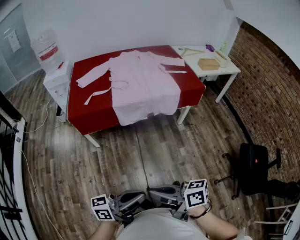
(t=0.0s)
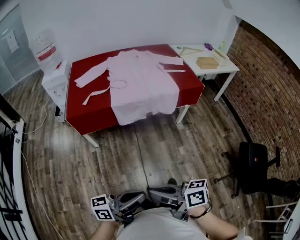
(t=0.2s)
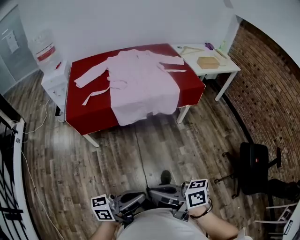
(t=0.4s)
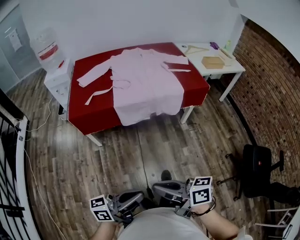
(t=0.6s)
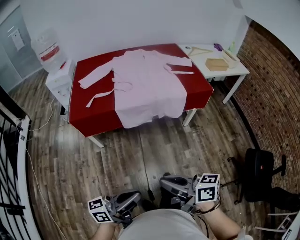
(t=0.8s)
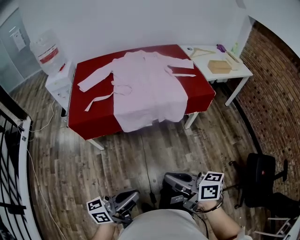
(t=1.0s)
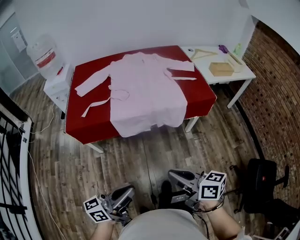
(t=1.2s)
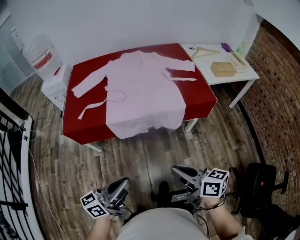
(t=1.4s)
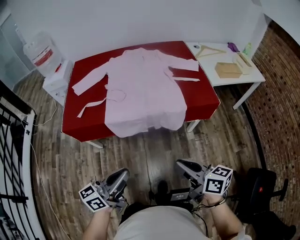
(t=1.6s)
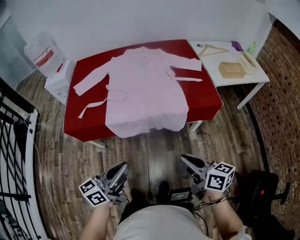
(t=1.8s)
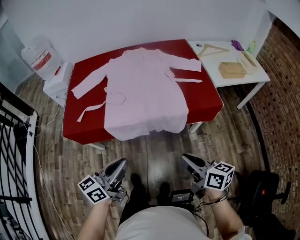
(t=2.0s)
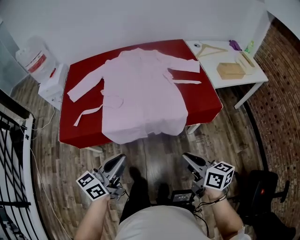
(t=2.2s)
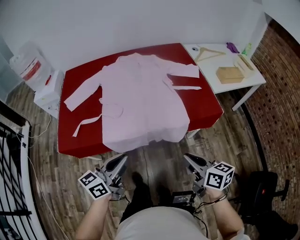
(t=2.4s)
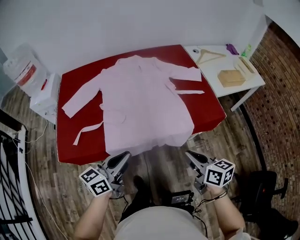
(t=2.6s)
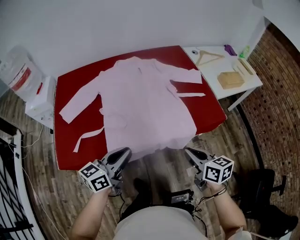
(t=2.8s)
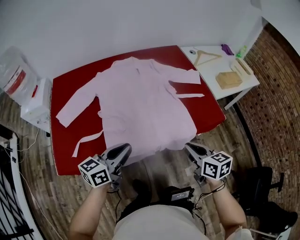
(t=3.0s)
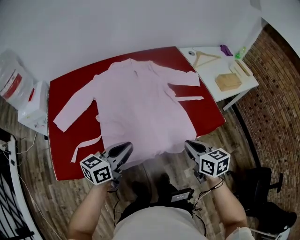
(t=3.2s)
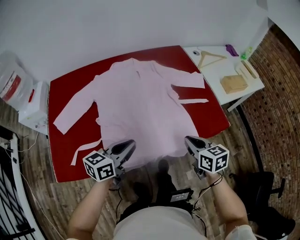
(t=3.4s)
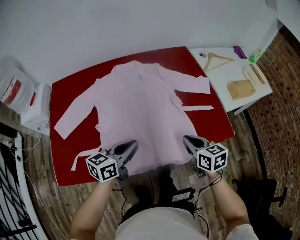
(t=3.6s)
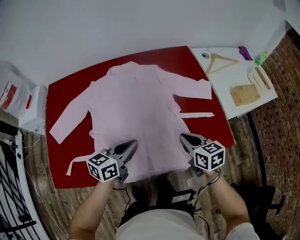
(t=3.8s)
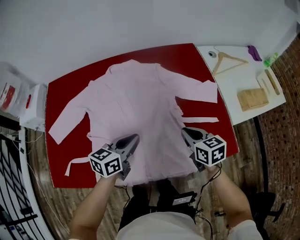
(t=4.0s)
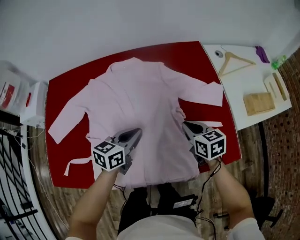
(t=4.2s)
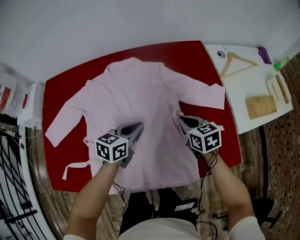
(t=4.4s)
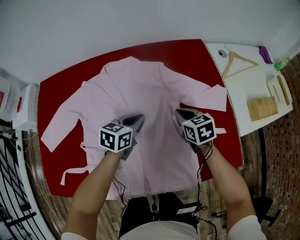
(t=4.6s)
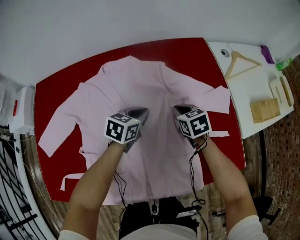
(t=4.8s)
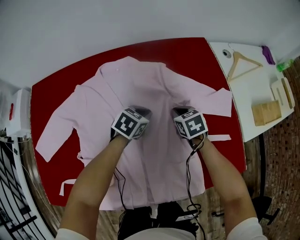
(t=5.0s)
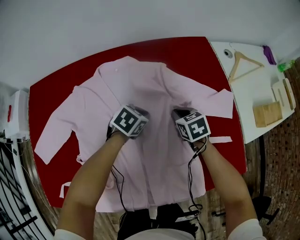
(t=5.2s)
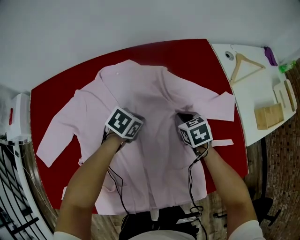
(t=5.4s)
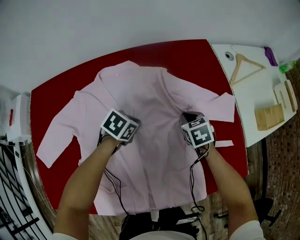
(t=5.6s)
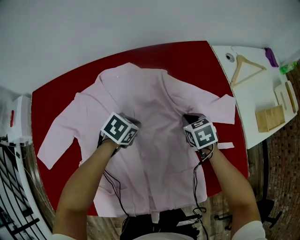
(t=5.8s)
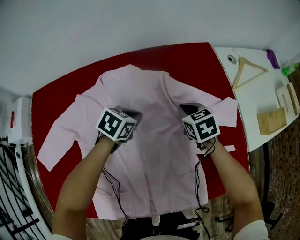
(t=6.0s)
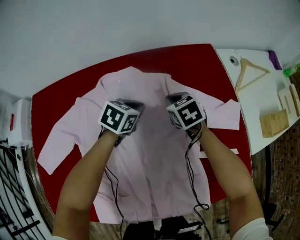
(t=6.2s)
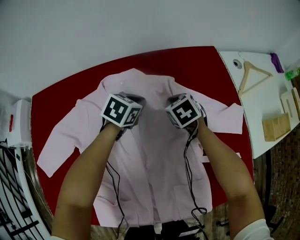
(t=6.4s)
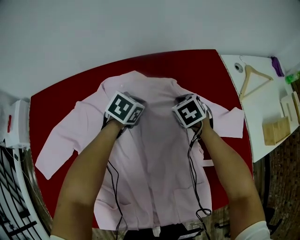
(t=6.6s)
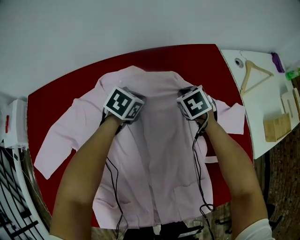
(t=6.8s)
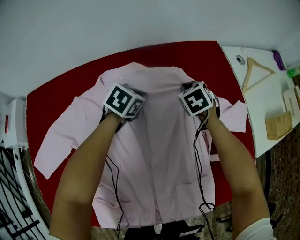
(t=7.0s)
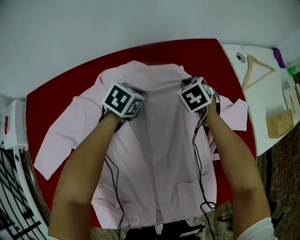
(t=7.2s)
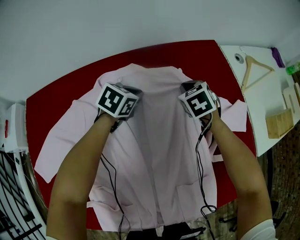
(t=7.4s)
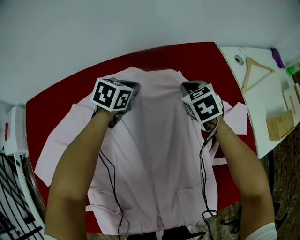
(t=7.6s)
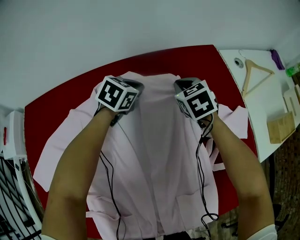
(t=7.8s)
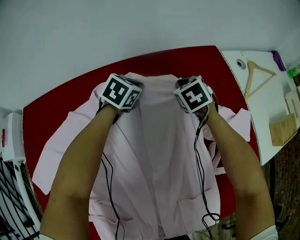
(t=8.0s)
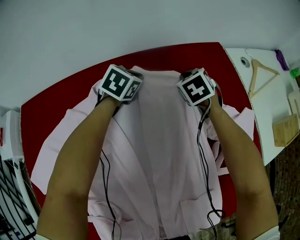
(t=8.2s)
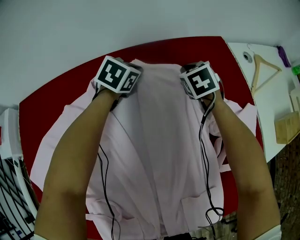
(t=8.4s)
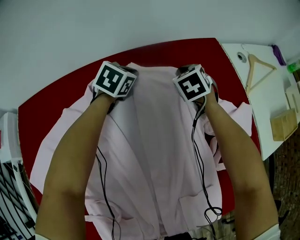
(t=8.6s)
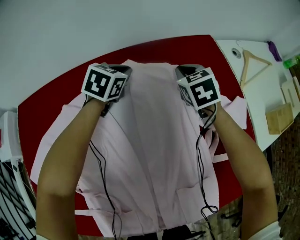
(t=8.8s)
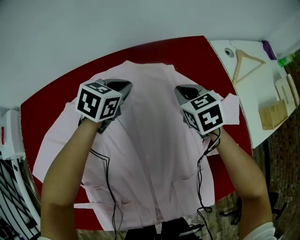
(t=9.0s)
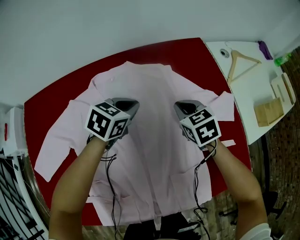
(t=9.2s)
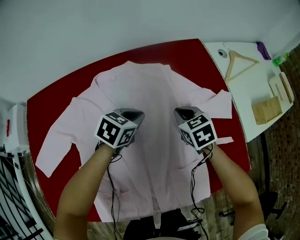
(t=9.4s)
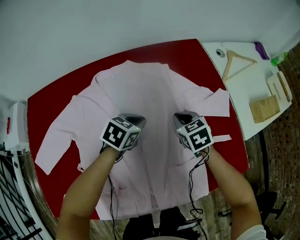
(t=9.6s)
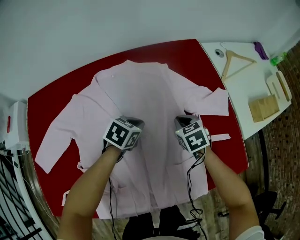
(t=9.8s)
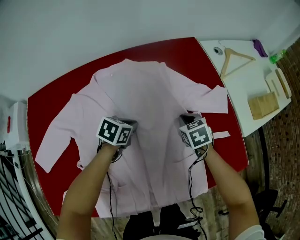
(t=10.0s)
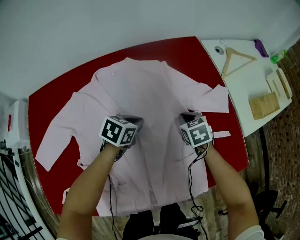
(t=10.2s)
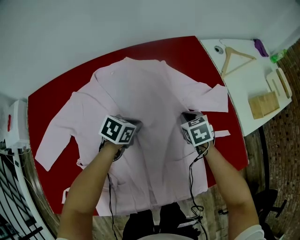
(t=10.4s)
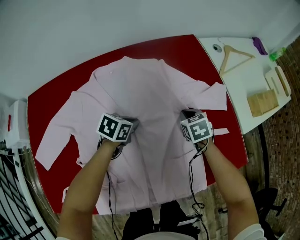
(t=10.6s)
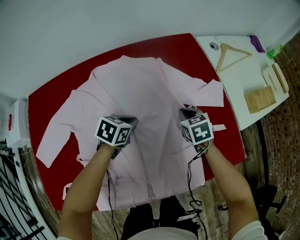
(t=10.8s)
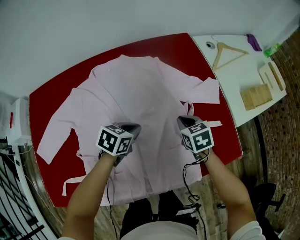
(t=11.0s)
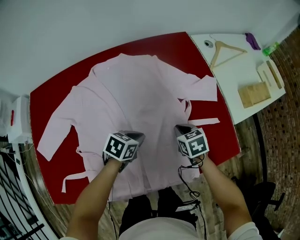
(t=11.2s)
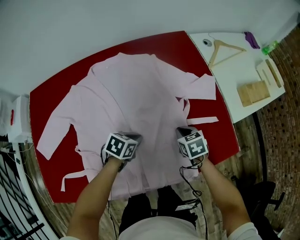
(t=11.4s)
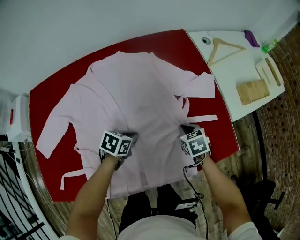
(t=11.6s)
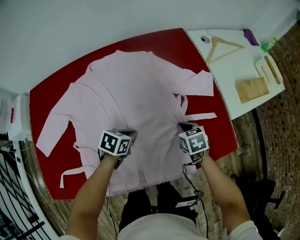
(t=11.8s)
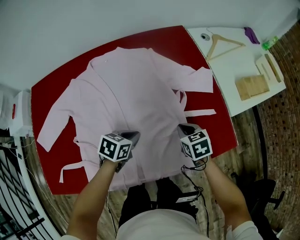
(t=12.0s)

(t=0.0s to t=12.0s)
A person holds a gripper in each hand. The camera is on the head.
t=0.0s - t=1.6s: The right gripper ends up some 35 cm from where it was, while the left gripper shifts by about 30 cm, and rotates approximately 30 degrees.
t=1.6s - t=3.0s: Both grippers travel together forward, roughly 25 cm. The right gripper changes its angle by some 30 degrees.
t=3.0s - t=4.4s: Both grippers move forward, some 35 cm. The left gripper swivels roughly 20 degrees.
t=4.4s - t=6.0s: The left gripper heads forward and downward, covering some 15 cm, and rotates approximately 30 degrees. Meanwhile the right gripper is displaced forward and to the left by about 15 cm.
t=6.0s - t=7.6s: Both grippers travel together forward, roughly 10 cm.
t=7.6s - t=9.0s: The right gripper heads backward, covering some 5 cm. Meanwhile the left gripper moves approximately 5 cm forward and comes back.
t=9.0s - t=10.4s: The left gripper goes approximately 20 cm backward, downward and to the right, and changes its angle by approximately 20 degrees. The right gripper heads backward, to the right and downward, covering about 15 cm.
t=10.4s - t=12.0s: The grippers both shift backward and to the right by about 15 cm.

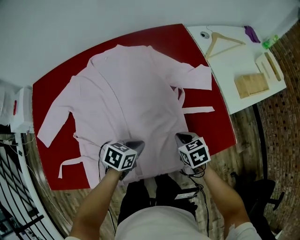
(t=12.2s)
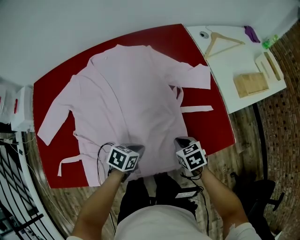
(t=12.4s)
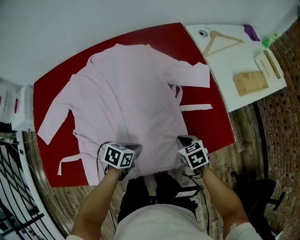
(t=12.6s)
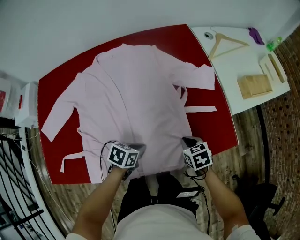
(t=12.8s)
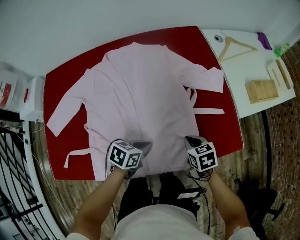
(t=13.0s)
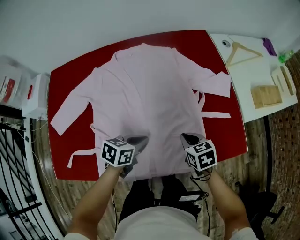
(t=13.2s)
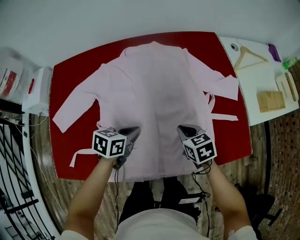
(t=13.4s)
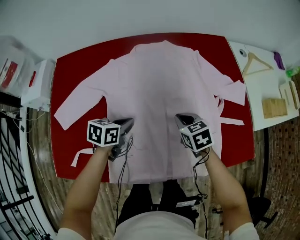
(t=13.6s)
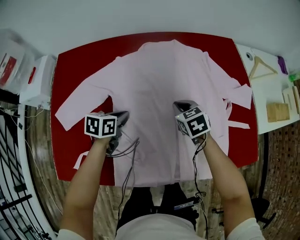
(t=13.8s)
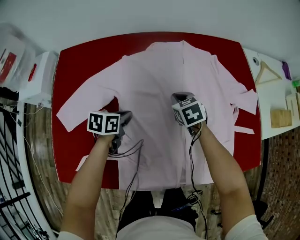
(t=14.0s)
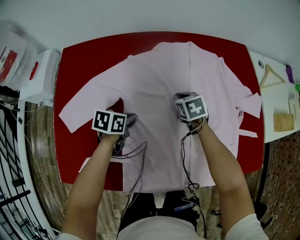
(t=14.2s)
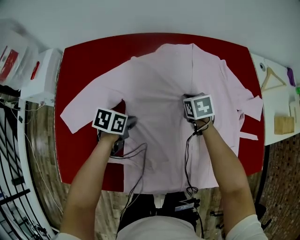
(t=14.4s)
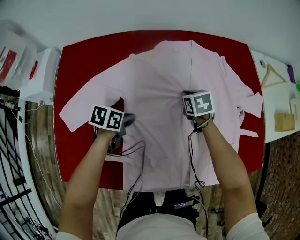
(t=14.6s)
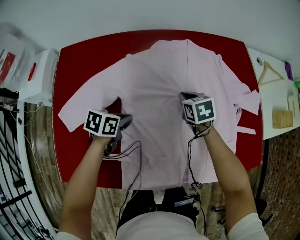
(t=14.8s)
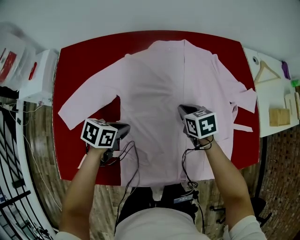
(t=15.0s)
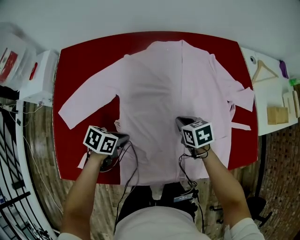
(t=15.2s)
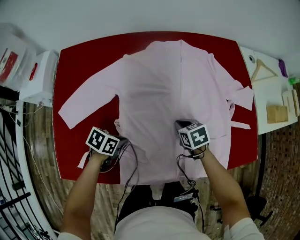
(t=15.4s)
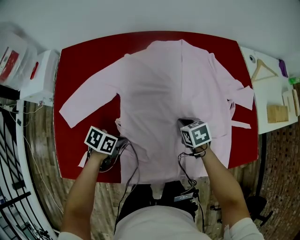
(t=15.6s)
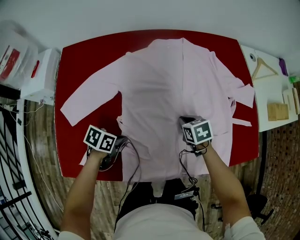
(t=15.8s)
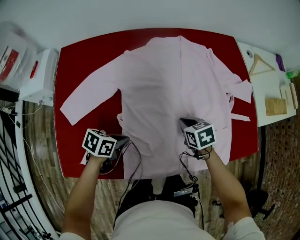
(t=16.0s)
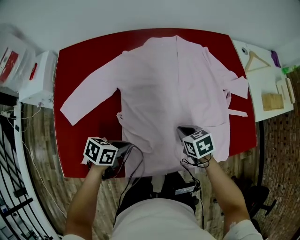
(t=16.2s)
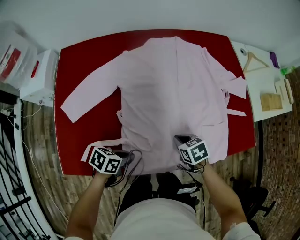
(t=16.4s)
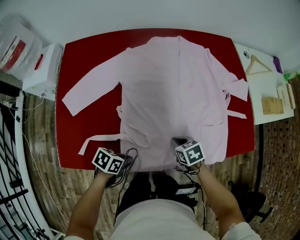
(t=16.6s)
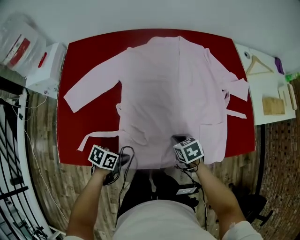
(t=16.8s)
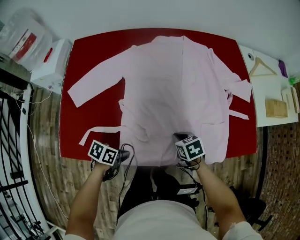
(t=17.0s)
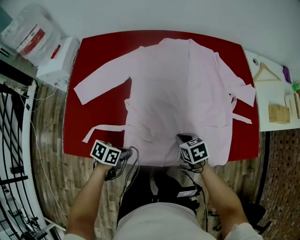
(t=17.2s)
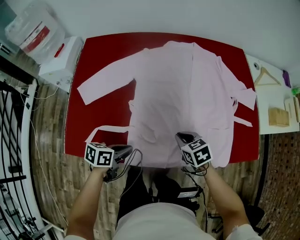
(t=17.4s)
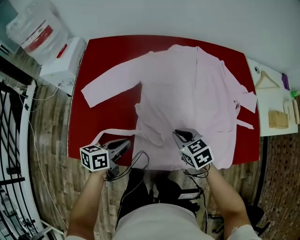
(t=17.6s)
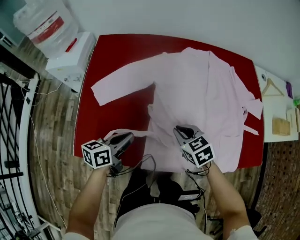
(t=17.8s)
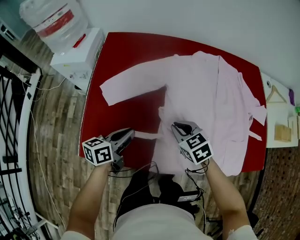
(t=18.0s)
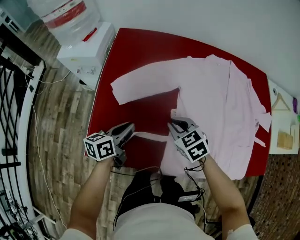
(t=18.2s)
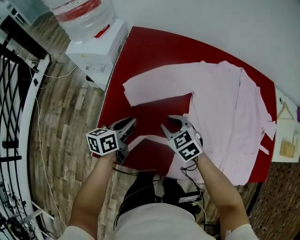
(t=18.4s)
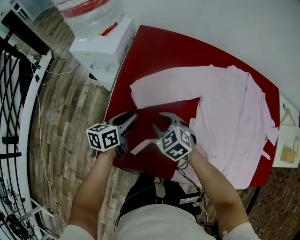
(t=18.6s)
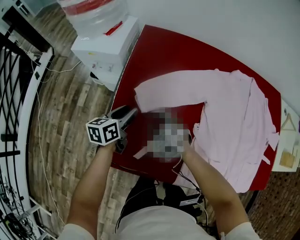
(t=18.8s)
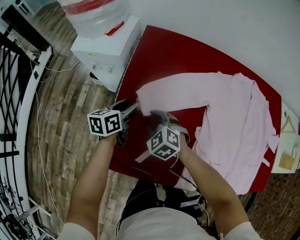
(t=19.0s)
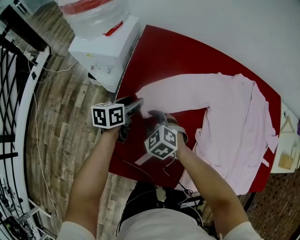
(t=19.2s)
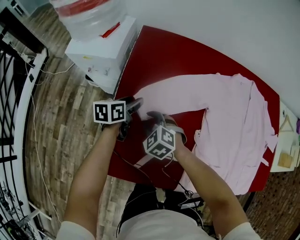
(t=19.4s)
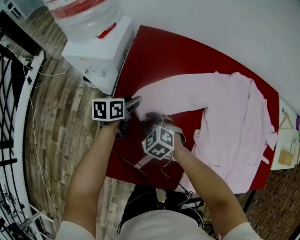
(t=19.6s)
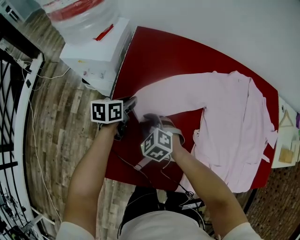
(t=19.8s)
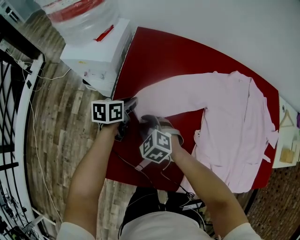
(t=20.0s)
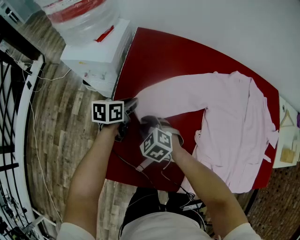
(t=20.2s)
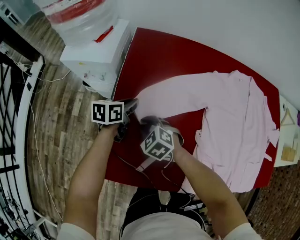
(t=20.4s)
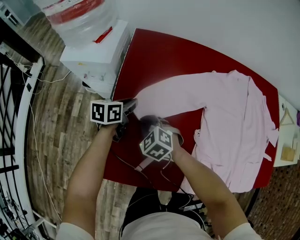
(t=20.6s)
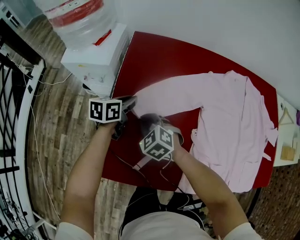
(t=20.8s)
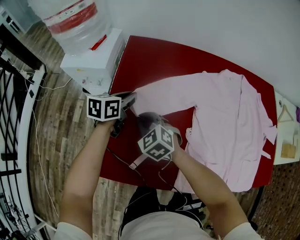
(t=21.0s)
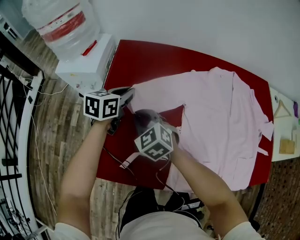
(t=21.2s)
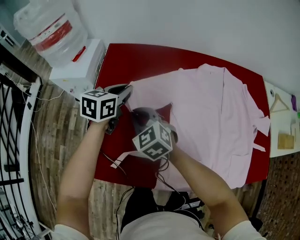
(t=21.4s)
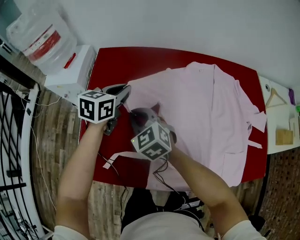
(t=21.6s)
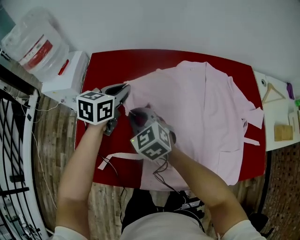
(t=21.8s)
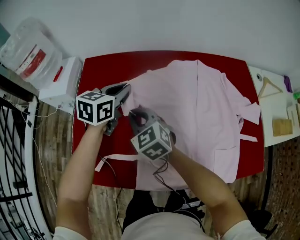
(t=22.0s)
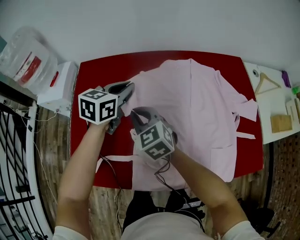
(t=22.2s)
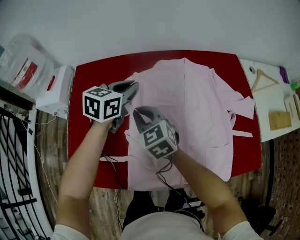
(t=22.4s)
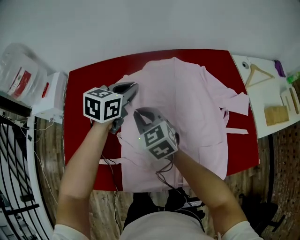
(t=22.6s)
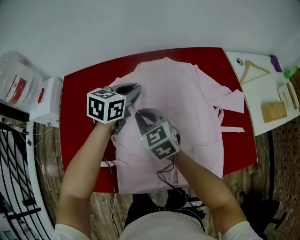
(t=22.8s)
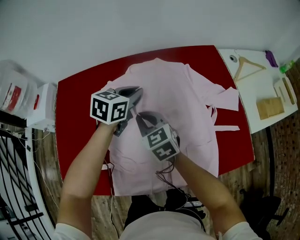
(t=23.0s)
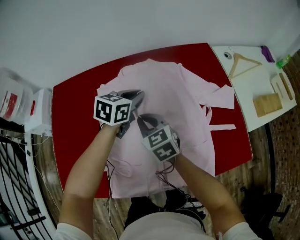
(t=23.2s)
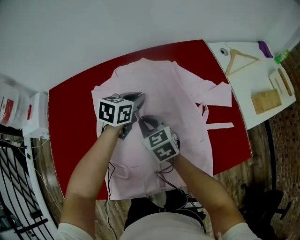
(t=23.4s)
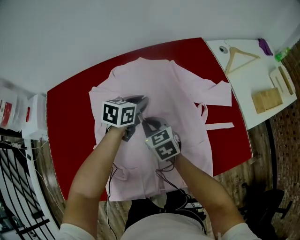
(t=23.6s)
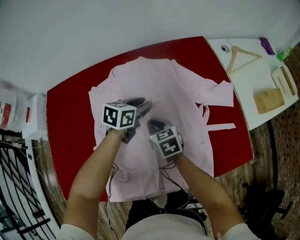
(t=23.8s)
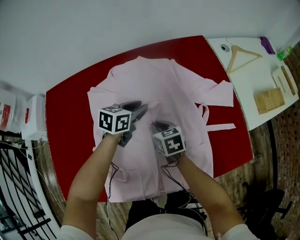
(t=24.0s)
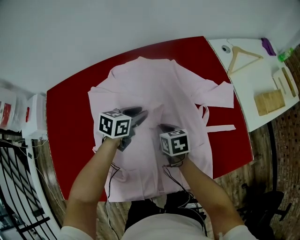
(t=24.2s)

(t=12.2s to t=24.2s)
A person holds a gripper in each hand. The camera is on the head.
t=12.2s - t=13.8s: The right gripper shifts roughly 25 cm to the left and forward; the left gripper travels to the left by roughly 30 cm, and changes its angle by about 30 degrees.
t=13.8s - t=15.2s: The left gripper is displaced backward by about 10 cm, and rotates about 20 degrees. Meanwhile the right gripper is displaced backward by some 5 cm.
t=15.2s - t=16.6s: The right gripper changes place by about 15 cm. Meanwhile the left gripper ends up roughly 15 cm from where it was.
t=16.6s - t=18.2s: The left gripper ends up roughly 25 cm from where it was, and changes its angle by some 60 degrees, while the right gripper moves approximately 30 cm, and changes its angle by approximately 40 degrees.
t=18.2s - t=19.8s: The right gripper moves to the left, forward and downward, about 25 cm, changes its angle by roughly 30 degrees, and opens. Meanwhile the left gripper goes roughly 20 cm forward and to the left, and opens and closes again.
t=19.8s - t=21.2s: The left gripper travels upward and to the right by some 15 cm, and rotates about 20 degrees; the right gripper heads upward, covering approximately 10 cm, turns by roughly 20 degrees, and closes.
t=21.2s - t=22.6s: Both grippers travel together to the right, roughly 30 cm. The left gripper swivels some 20 degrees; the right gripper rotates about 20 degrees.
t=22.6s - t=24.2s: The two grippers go about 25 cm to the right and downward. The left gripper opens up. Meanwhile the right gripper changes its angle by approximately 40 degrees.
